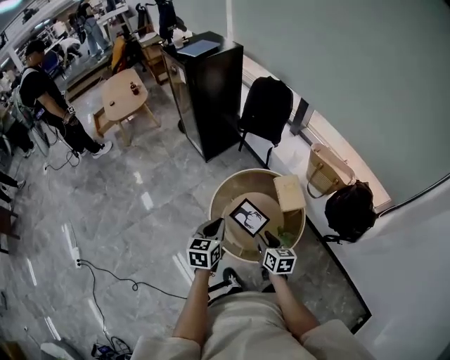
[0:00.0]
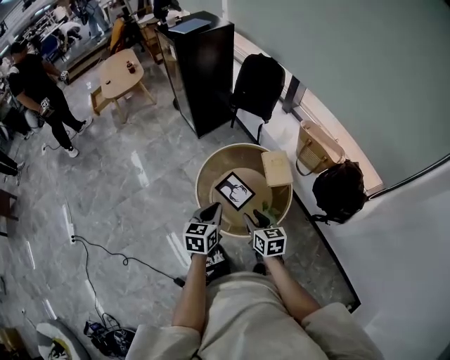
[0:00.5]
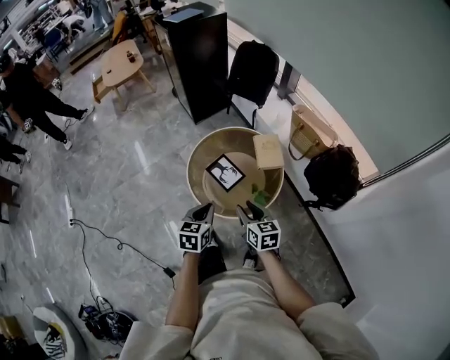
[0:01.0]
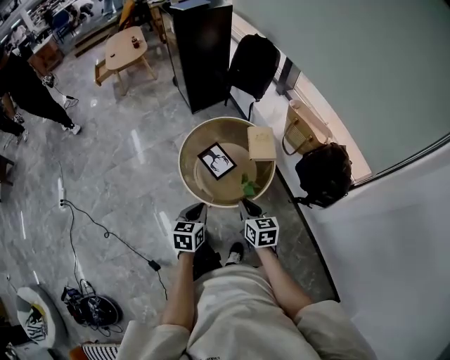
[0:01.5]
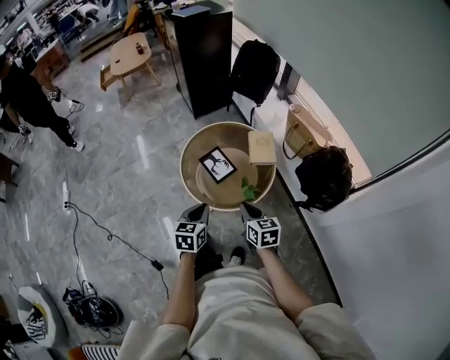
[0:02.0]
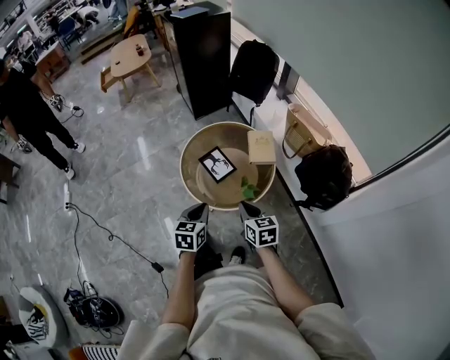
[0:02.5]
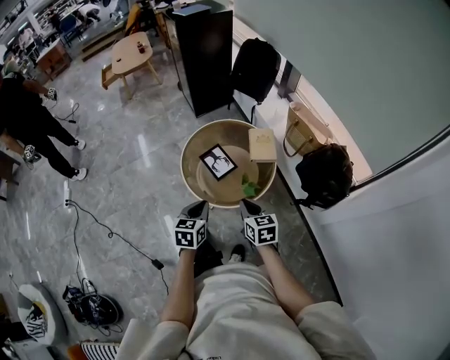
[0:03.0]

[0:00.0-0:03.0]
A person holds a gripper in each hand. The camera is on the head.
0:00.0 to 0:01.5: The two grippers go about 25 cm backward and to the right. The right gripper closes its fingers.
0:01.5 to 0:03.0: The grippers make only small movements.

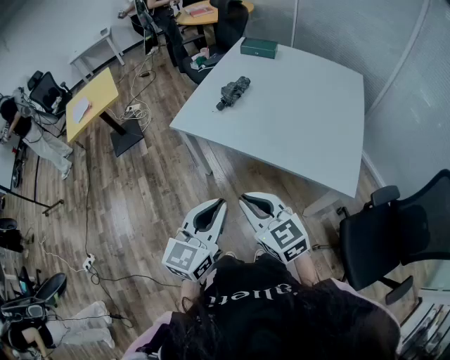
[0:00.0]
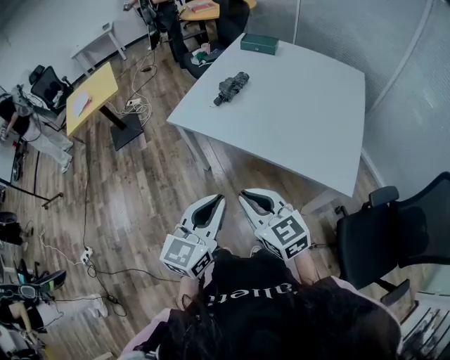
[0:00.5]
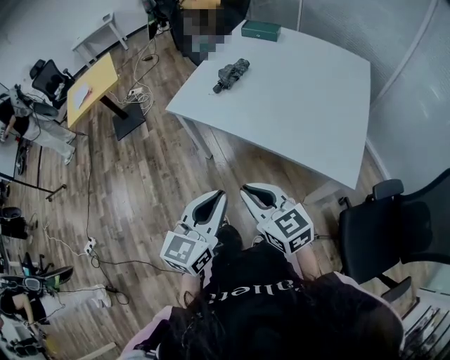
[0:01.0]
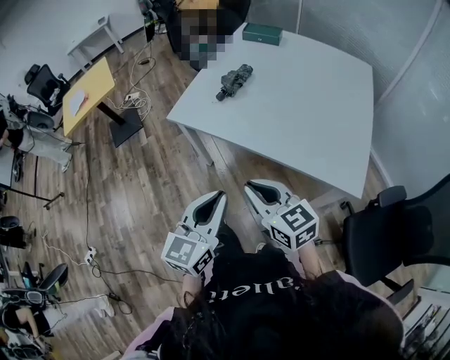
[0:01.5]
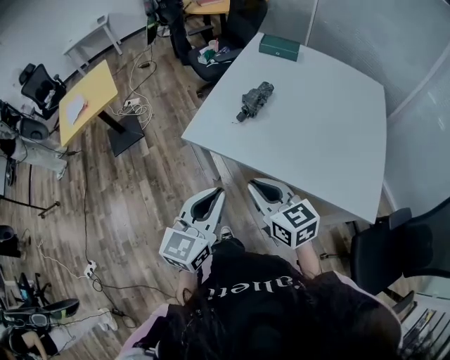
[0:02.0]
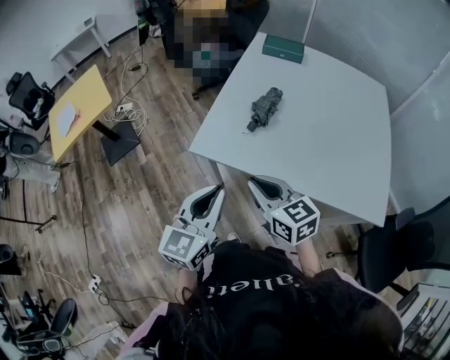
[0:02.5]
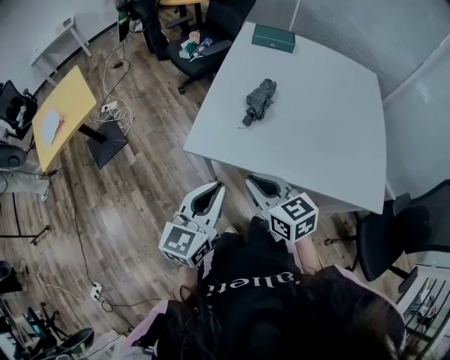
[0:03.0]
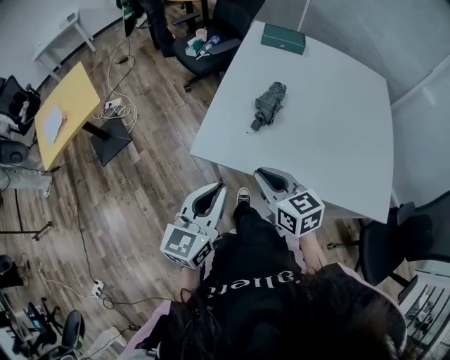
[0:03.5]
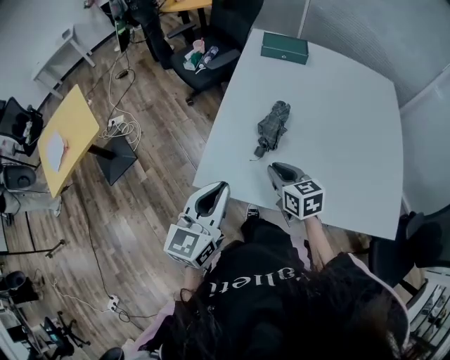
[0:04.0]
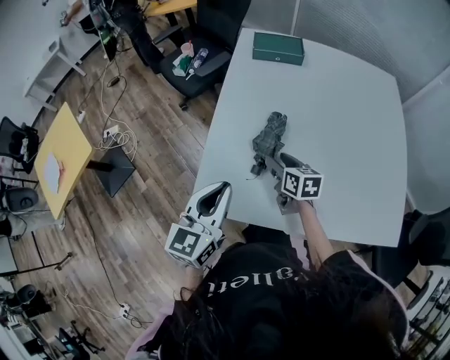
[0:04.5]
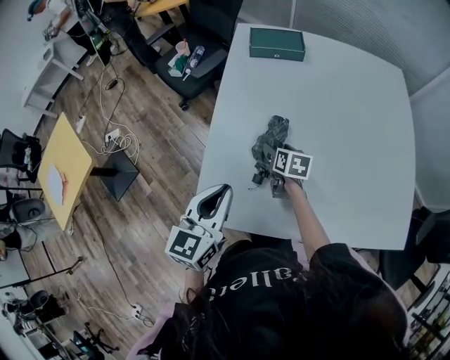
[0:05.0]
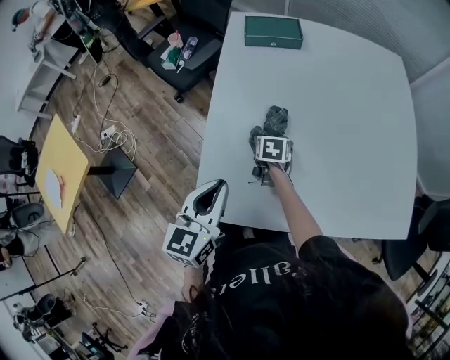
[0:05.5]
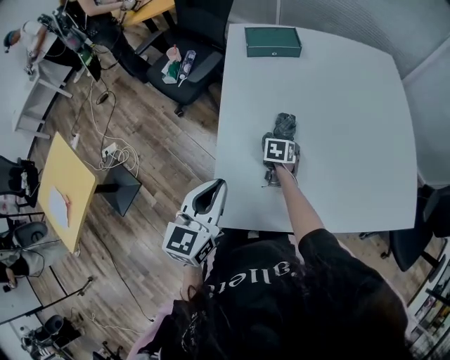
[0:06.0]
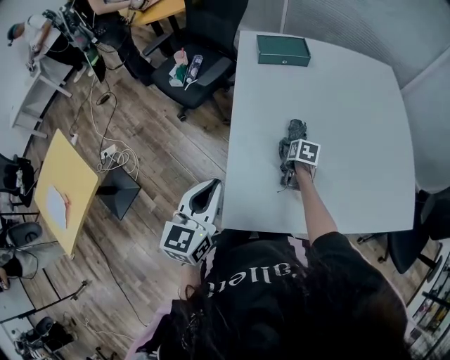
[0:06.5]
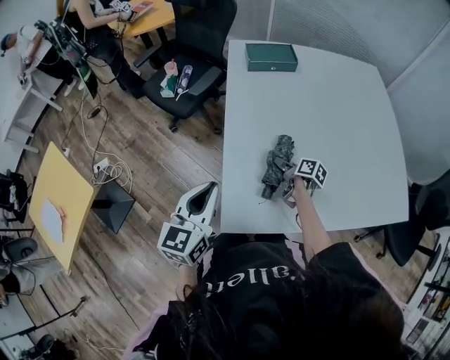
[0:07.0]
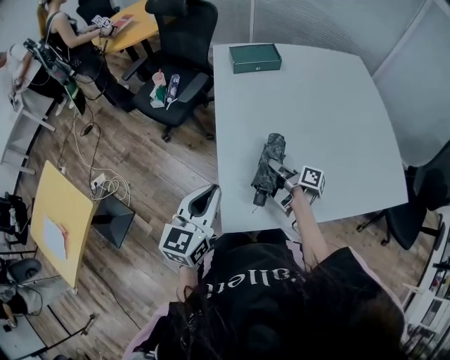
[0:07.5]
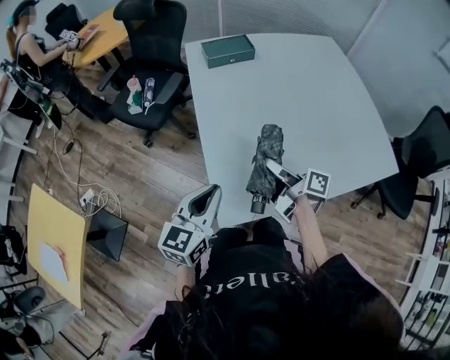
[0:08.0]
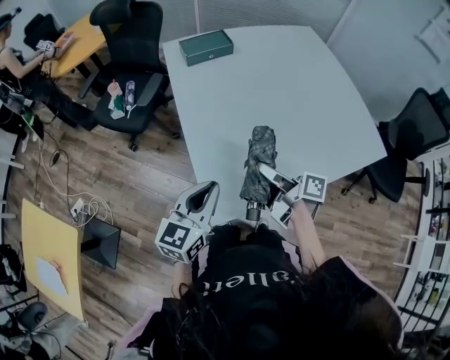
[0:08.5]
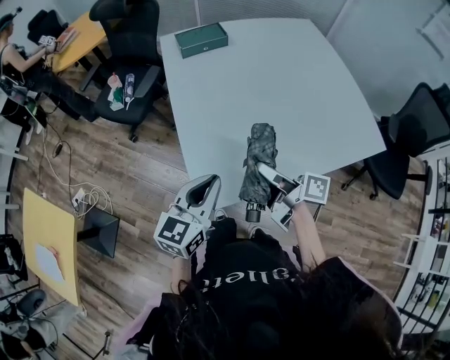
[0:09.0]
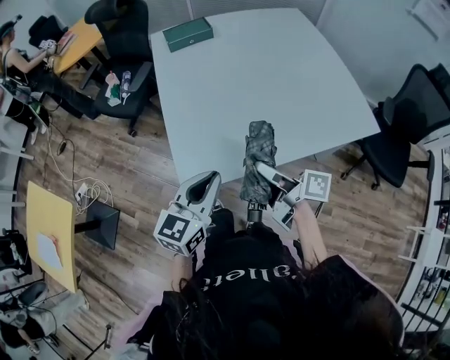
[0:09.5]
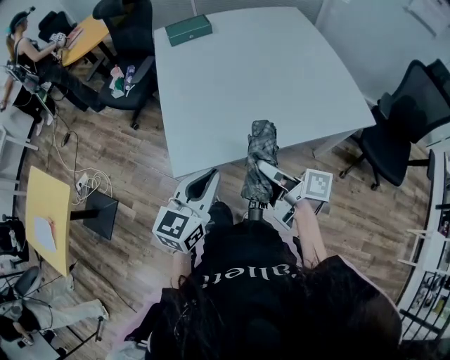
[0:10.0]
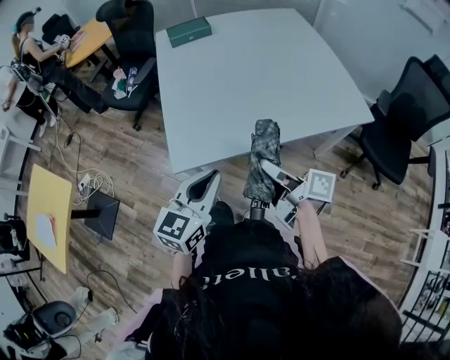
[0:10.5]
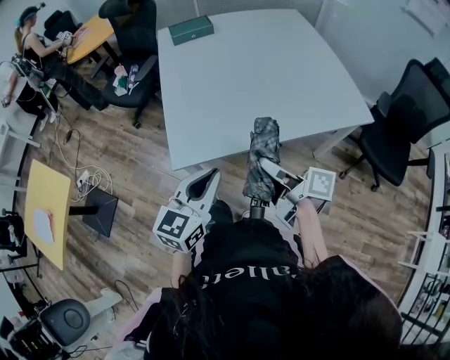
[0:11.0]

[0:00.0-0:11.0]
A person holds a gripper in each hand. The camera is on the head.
0:00.0 to 0:02.0: The right gripper goes some 20 cm forward. The left gripper shifts approximately 20 cm forward and to the left.
0:02.0 to 0:03.5: The two grippers go approximately 15 cm forward and to the left.
0:03.5 to 0:05.5: The left gripper shifts roughly 25 cm forward; the right gripper is displaced forward and downward by roughly 40 cm, angles its fingers downward, by approximately 30 degrees, and opens.
0:05.5 to 0:07.5: The left gripper goes about 10 cm to the left. Meanwhile the right gripper is displaced backward and upward by about 15 cm, points its fingers roughly 40 degrees further upward, and closes.
0:07.5 to 0:09.0: The left gripper moves to the right, roughly 10 cm, while the right gripper heads backward, upward and to the right, covering roughly 20 cm.
0:09.0 to 0:11.0: Both grippers move backward and to the right, approximately 15 cm.

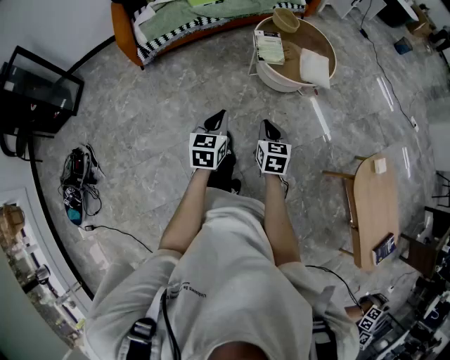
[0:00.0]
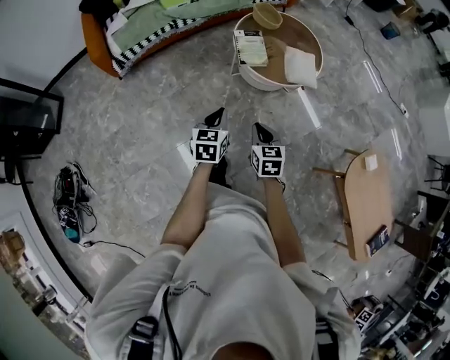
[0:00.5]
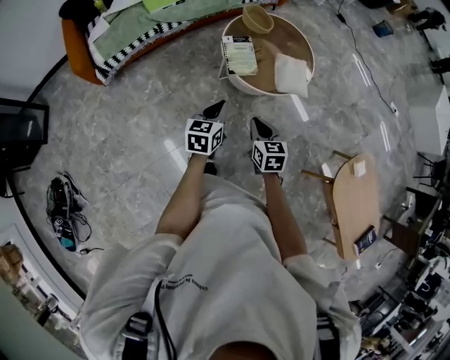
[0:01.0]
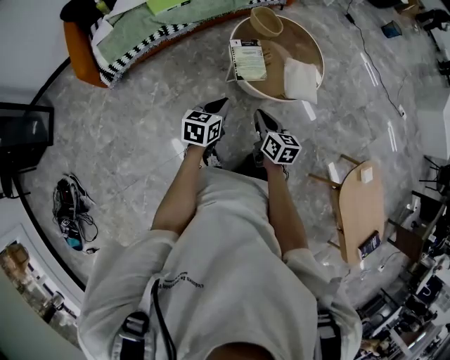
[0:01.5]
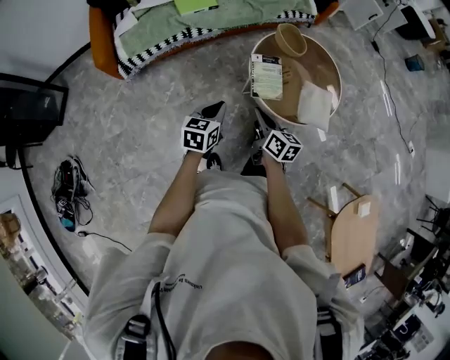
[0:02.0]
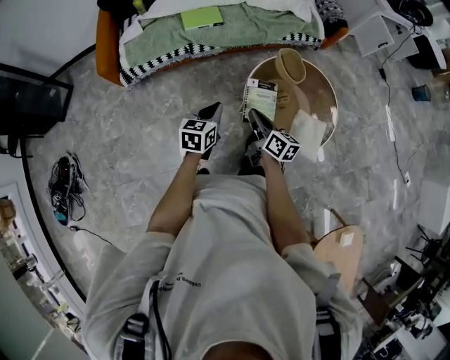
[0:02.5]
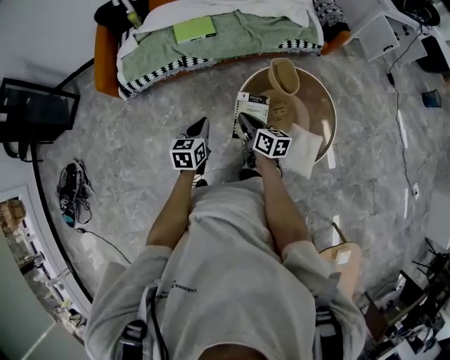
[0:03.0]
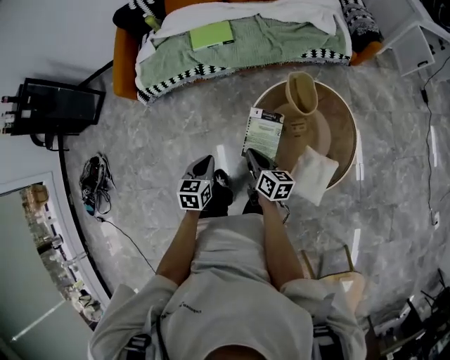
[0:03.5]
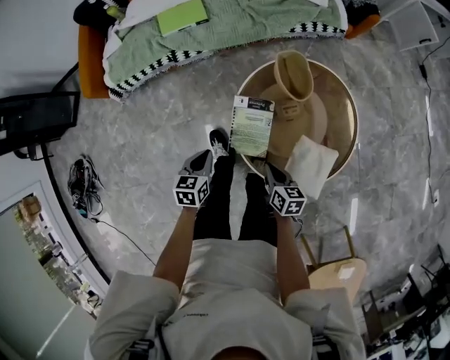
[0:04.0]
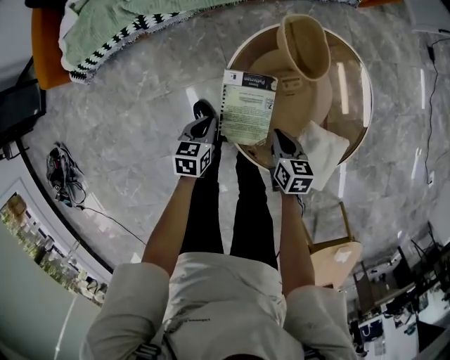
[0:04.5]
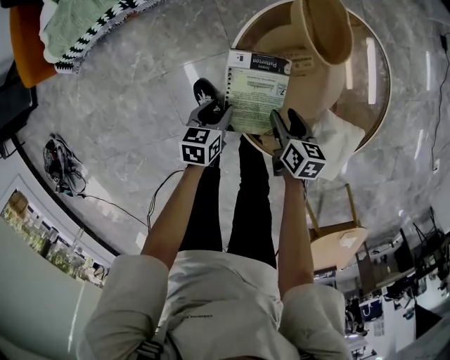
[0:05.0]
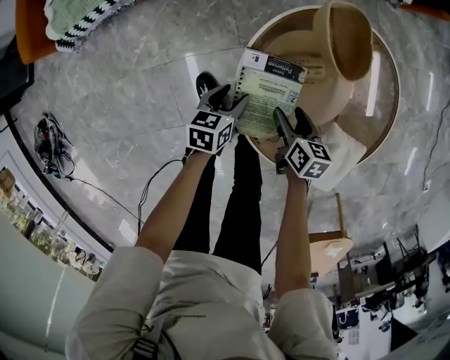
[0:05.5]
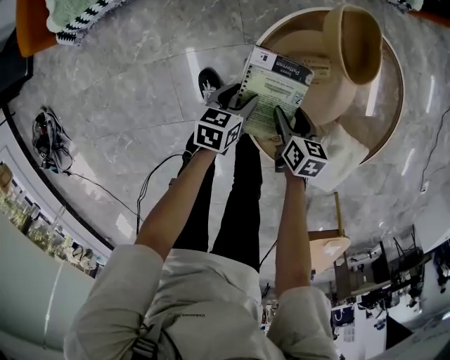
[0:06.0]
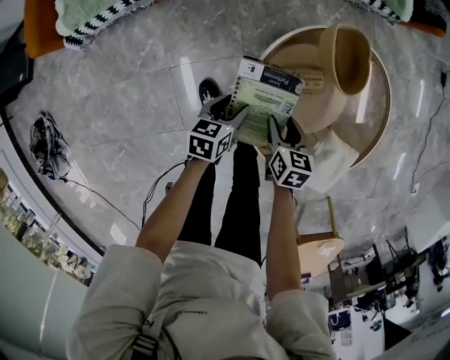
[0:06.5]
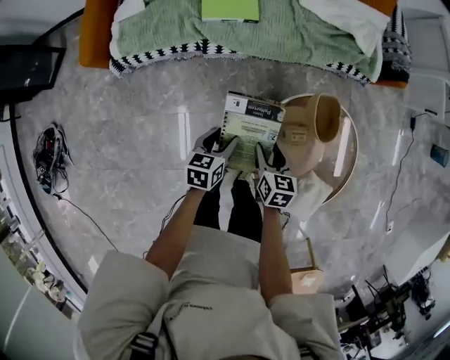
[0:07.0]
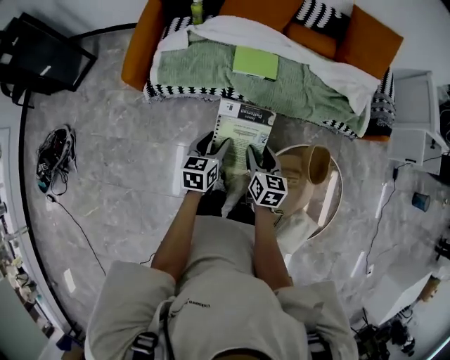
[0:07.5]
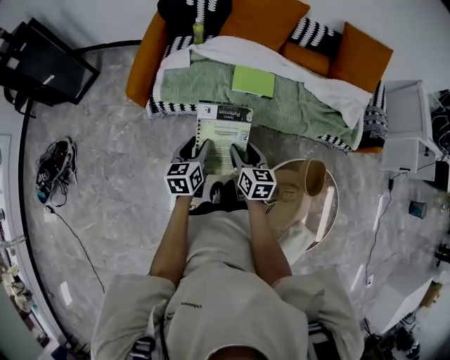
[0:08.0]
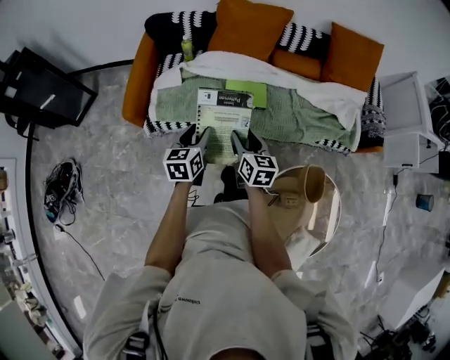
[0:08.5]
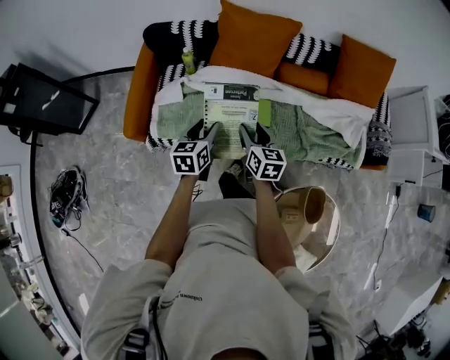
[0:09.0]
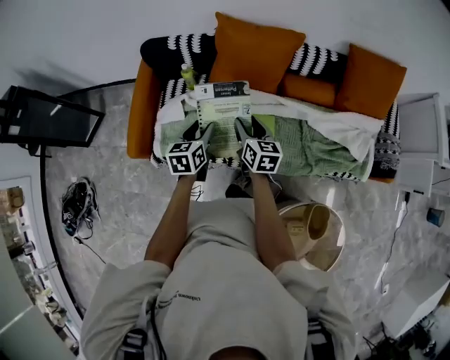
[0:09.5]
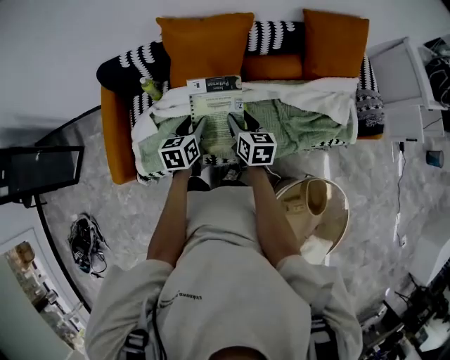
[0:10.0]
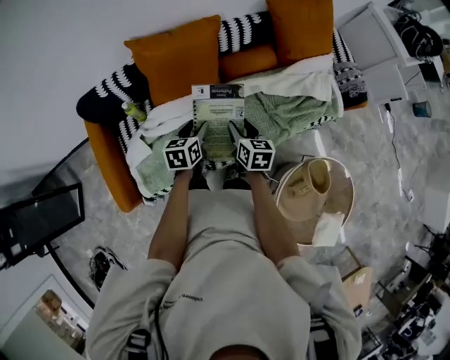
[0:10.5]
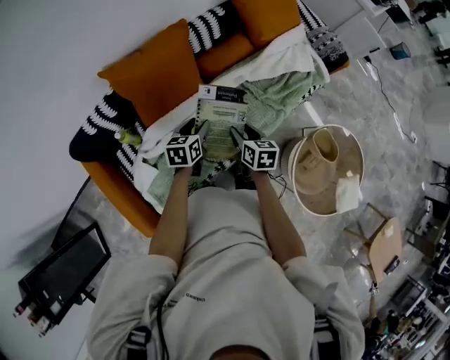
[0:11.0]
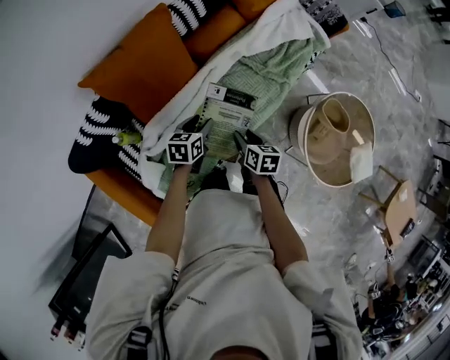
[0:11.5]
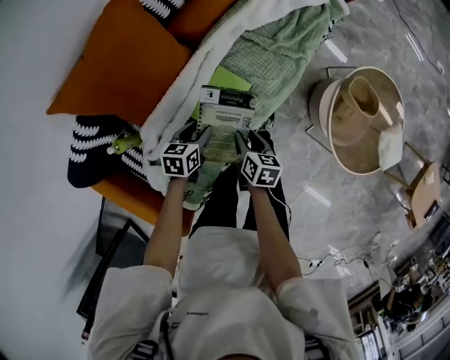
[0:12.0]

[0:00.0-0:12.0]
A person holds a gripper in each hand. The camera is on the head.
0:00.0 to 0:02.0: Both grippers move forward, about 35 cm. The right gripper changes its angle by about 40 degrees.
0:02.0 to 0:04.0: The right gripper goes some 30 cm to the right, downward and forward, and changes its angle by roughly 30 degrees, while the left gripper is displaced downward, forward and to the right by roughly 25 cm, and swivels some 30 degrees.
0:04.0 to 0:06.0: The left gripper moves downward, roughly 20 cm, and opens. Meanwhile the right gripper travels downward and forward by roughly 20 cm, and opens.
0:06.0 to 0:08.0: The left gripper ends up roughly 50 cm from where it was, and turns by approximately 40 degrees; the right gripper shifts by about 50 cm, and rotates roughly 40 degrees.
0:08.0 to 0:10.0: The pair of grippers is taken forward, about 40 cm.
0:10.0 to 0:12.0: Both grippers travel together downward, about 20 cm. The right gripper rotates roughly 60 degrees; the left gripper turns by approximately 60 degrees.
